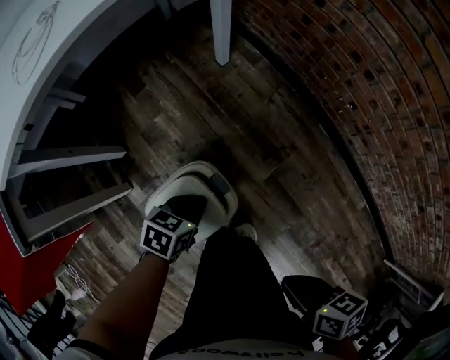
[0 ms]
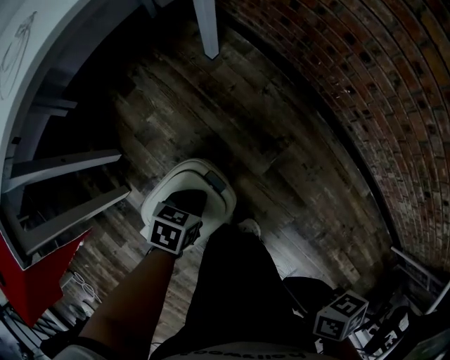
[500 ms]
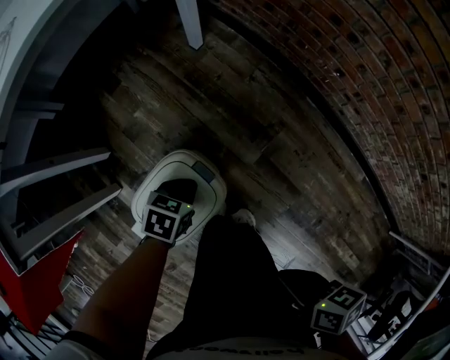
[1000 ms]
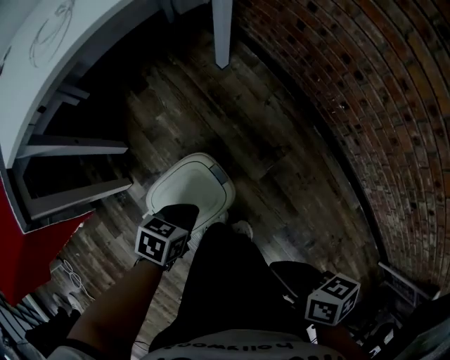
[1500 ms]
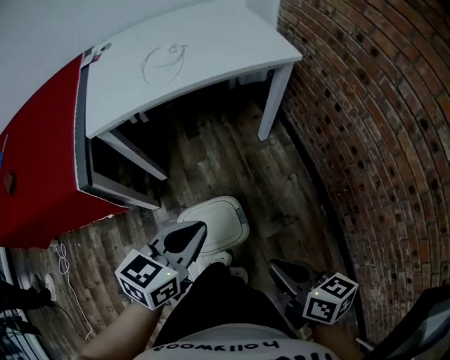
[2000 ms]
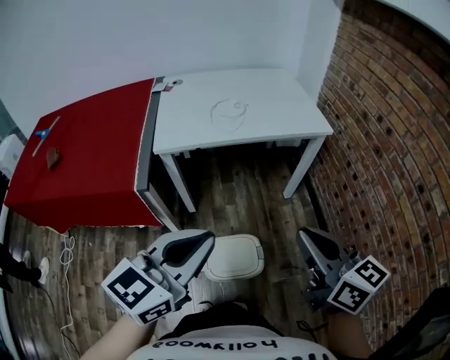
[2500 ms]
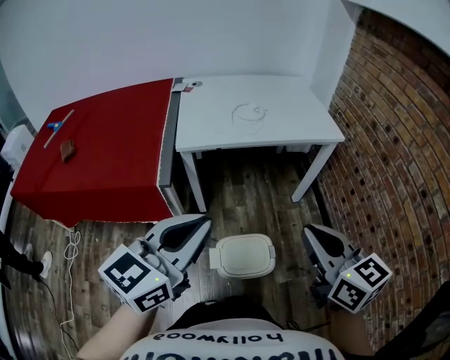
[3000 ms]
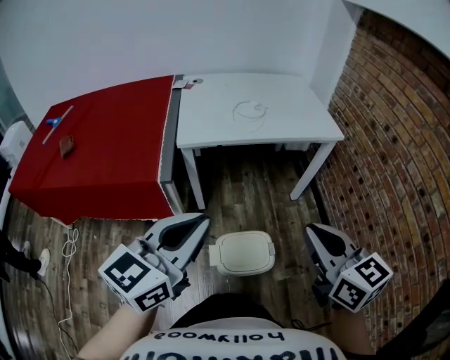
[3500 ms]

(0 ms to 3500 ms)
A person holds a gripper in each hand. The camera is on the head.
0 ms - 2000 ms: The right gripper travels upward by roughly 15 cm, and rotates about 30 degrees, while the left gripper heads upward, covering approximately 35 cm, and swivels roughly 40 degrees.
2000 ms - 3500 ms: Both grippers travel together upward and to the left, roughly 25 cm. The right gripper changes its angle by approximately 40 degrees. Meanwhile the left gripper swivels about 30 degrees.

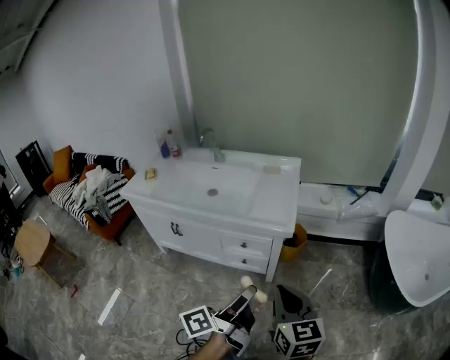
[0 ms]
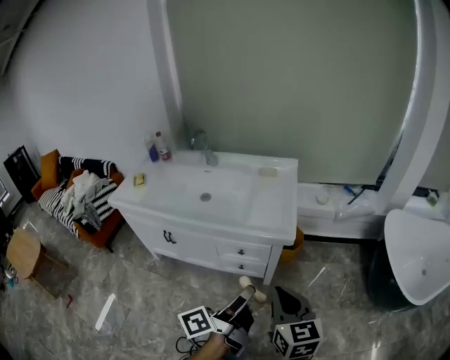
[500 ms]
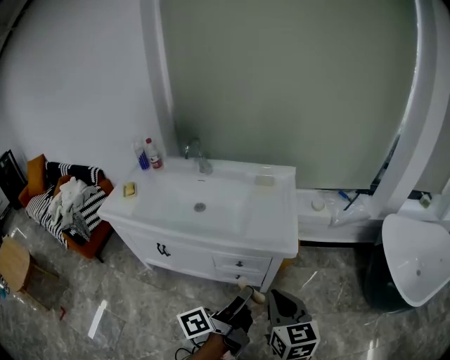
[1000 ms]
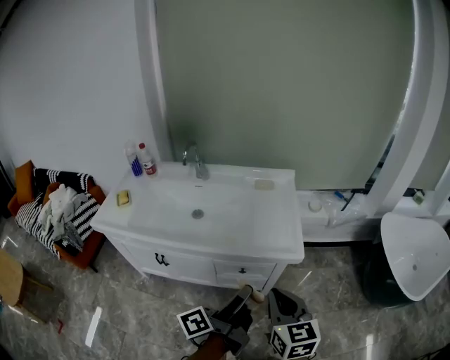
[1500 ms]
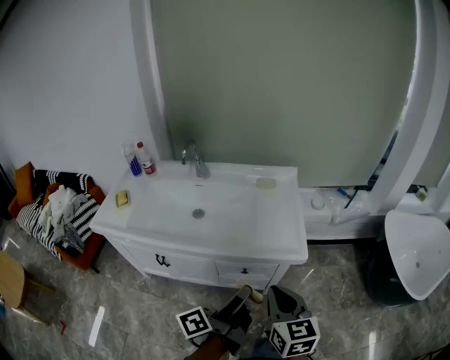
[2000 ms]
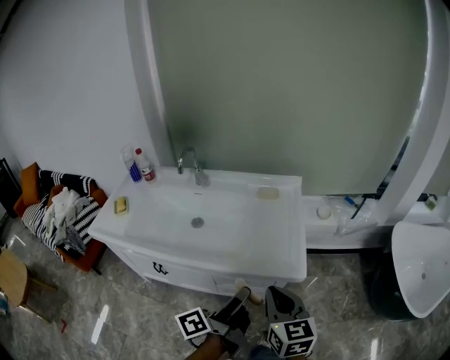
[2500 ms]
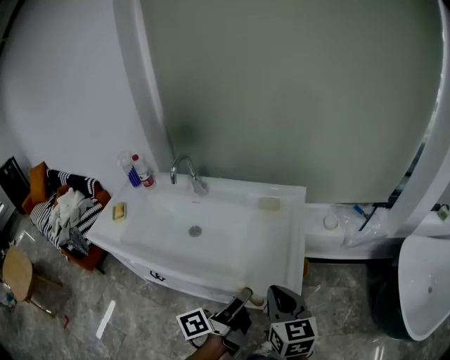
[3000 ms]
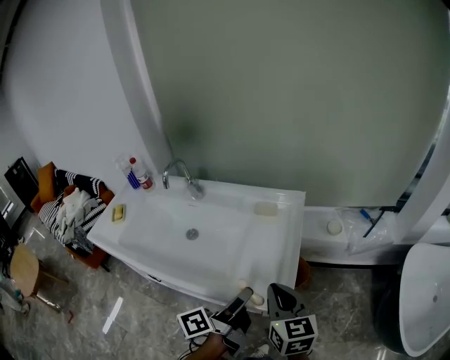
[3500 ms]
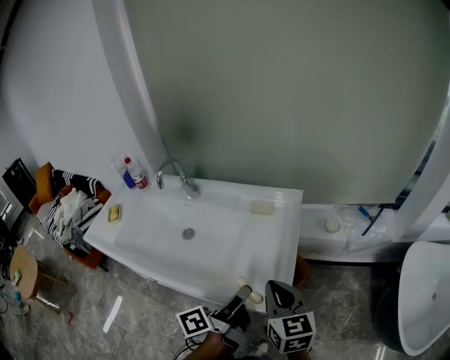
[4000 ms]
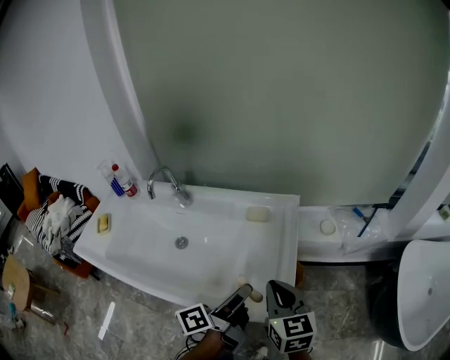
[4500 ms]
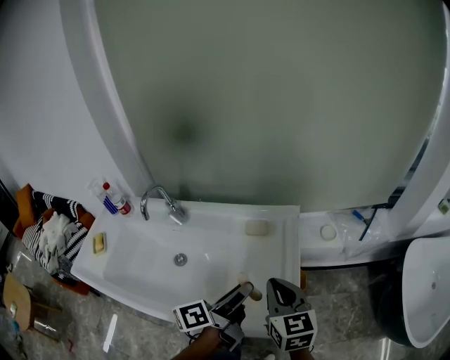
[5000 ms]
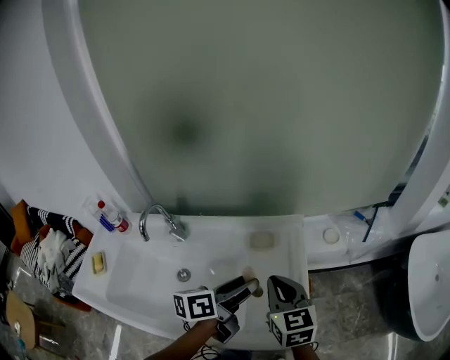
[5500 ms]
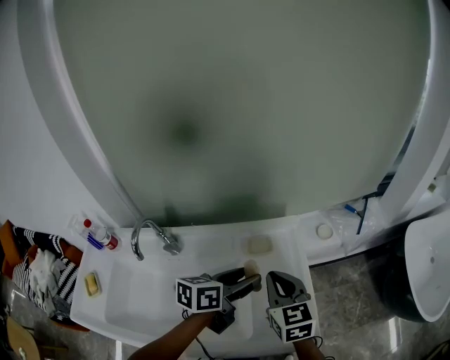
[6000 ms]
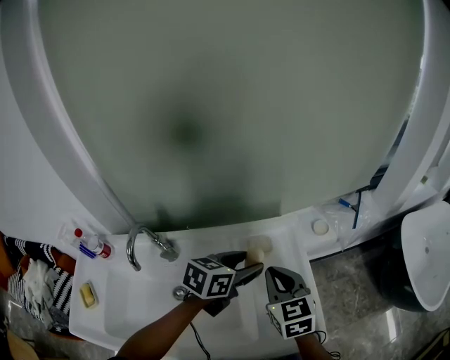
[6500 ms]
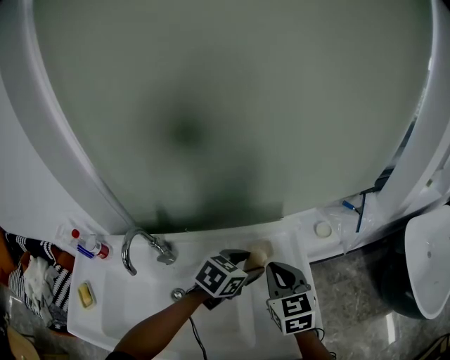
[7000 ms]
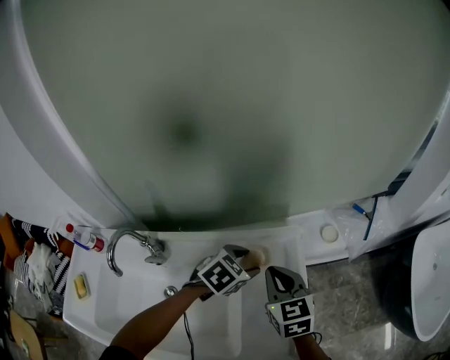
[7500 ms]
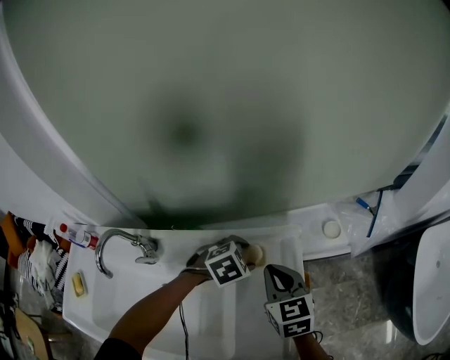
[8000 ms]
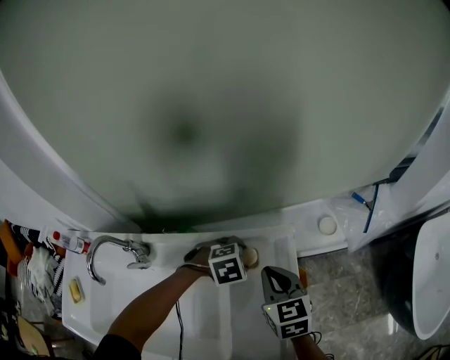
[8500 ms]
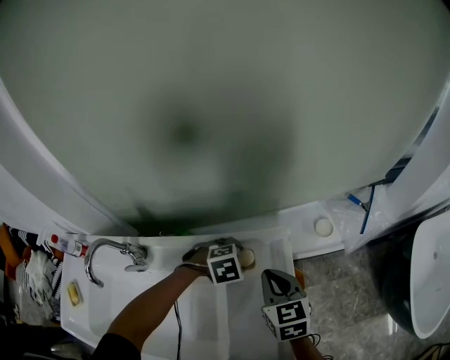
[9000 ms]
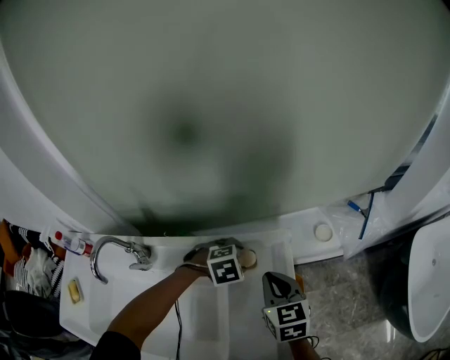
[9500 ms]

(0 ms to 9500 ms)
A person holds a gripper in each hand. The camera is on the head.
0 ms - 2000 ms: The two grippers go about 20 cm forward and to the left.
2000 ms - 4000 ms: Both grippers move forward and to the right, roughly 25 cm.
4000 ms - 5500 ms: The right gripper moves forward and to the left, approximately 15 cm, while the left gripper is displaced forward by about 15 cm, and turns by roughly 40 degrees.
5500 ms - 7500 ms: Both grippers travel together forward and downward, some 15 cm. The left gripper tips its fingers downward by about 40 degrees.
7500 ms - 9500 ms: The left gripper goes approximately 5 cm downward, and turns by some 30 degrees.

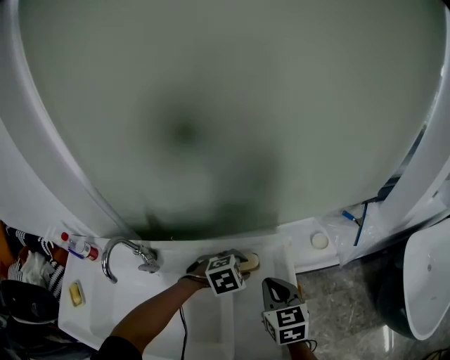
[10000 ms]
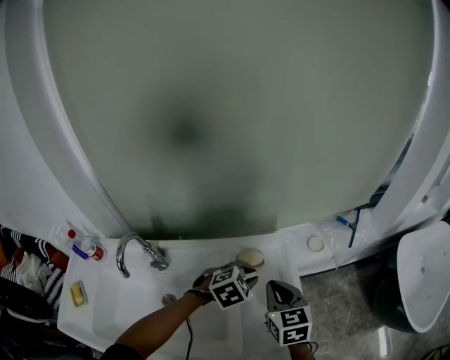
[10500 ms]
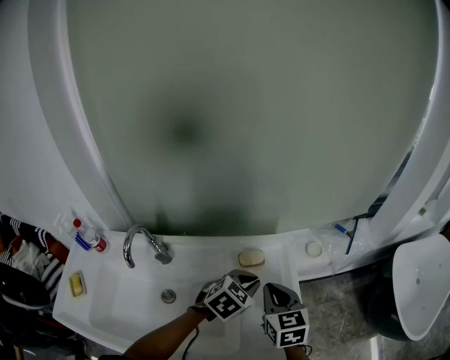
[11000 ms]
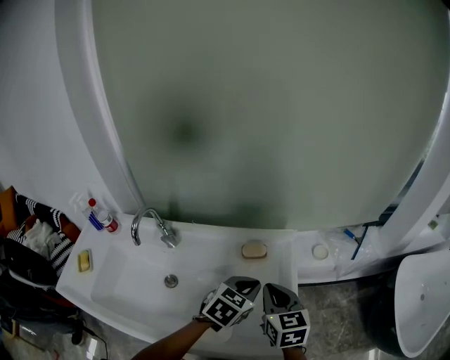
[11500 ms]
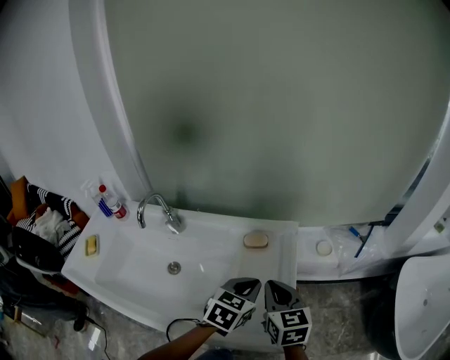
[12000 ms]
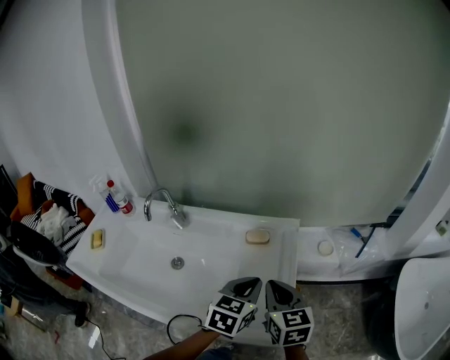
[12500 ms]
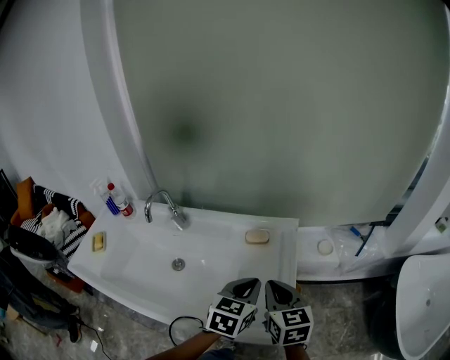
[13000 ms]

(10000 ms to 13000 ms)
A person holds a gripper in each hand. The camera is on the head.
10000 ms - 11500 ms: The left gripper shifts about 15 cm backward and upward, turns by approximately 50 degrees, and closes its fingers; the right gripper heads backward, covering approximately 10 cm.
11500 ms - 13000 ms: The grippers both shift backward by about 5 cm. The left gripper turns by about 20 degrees.

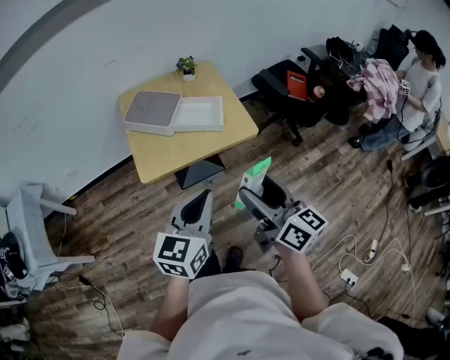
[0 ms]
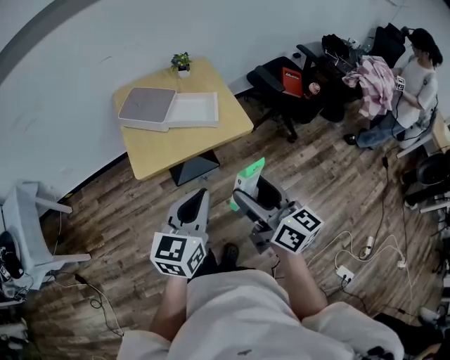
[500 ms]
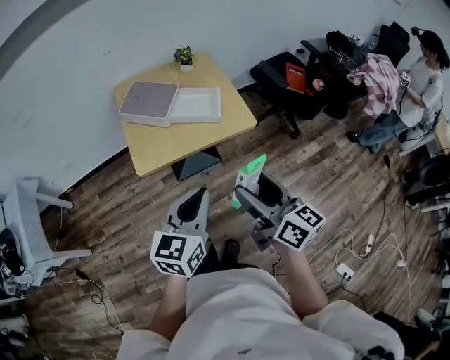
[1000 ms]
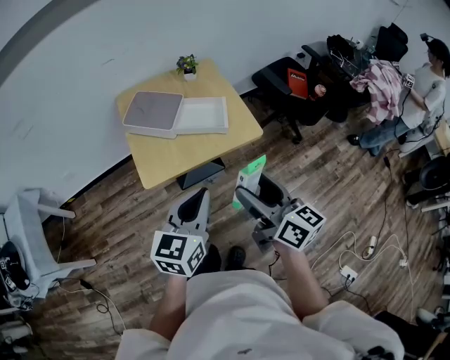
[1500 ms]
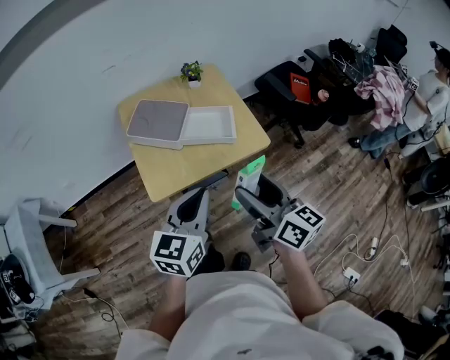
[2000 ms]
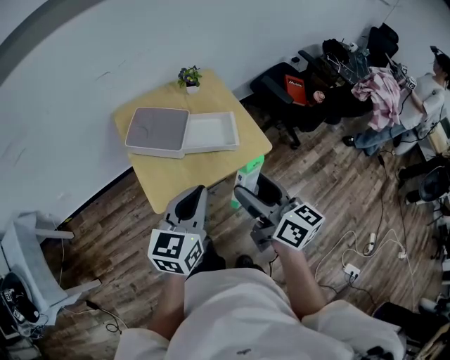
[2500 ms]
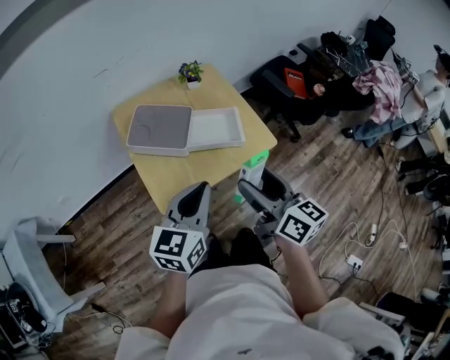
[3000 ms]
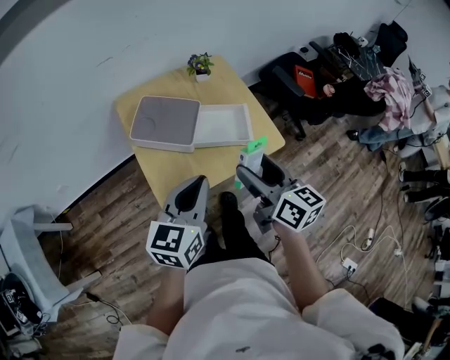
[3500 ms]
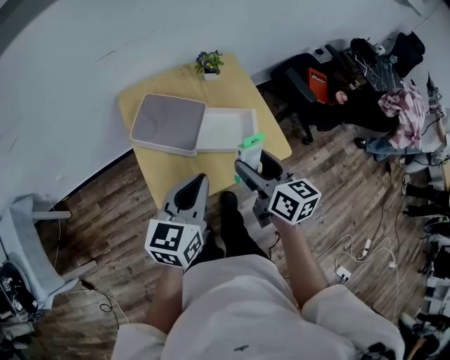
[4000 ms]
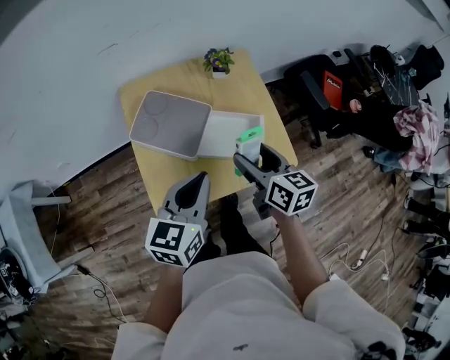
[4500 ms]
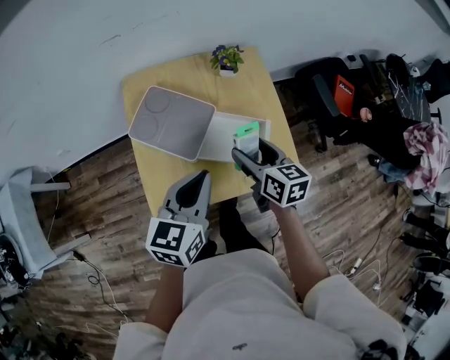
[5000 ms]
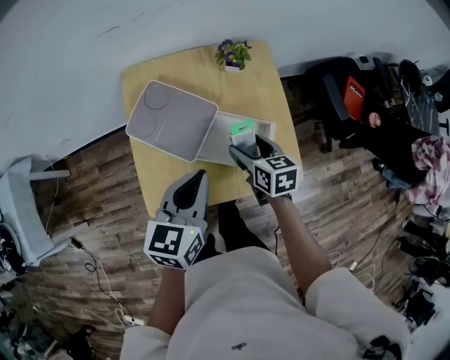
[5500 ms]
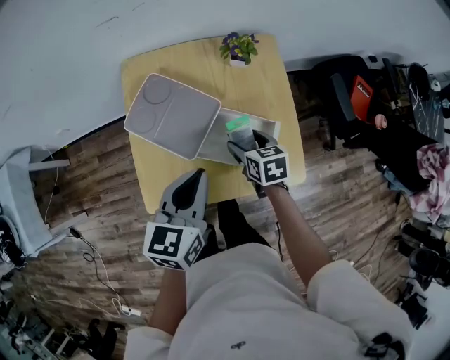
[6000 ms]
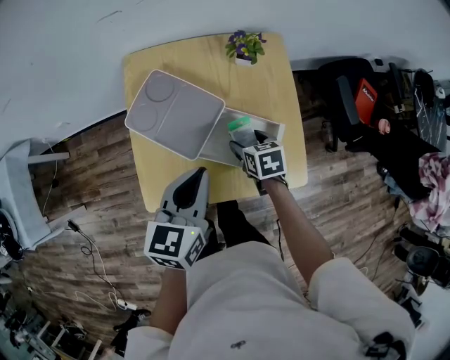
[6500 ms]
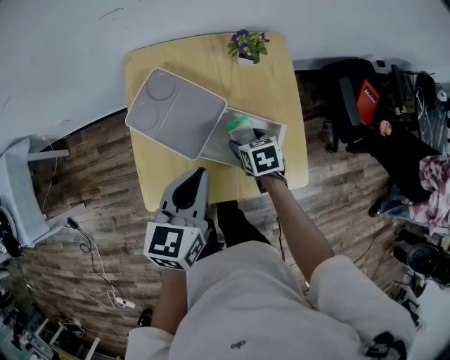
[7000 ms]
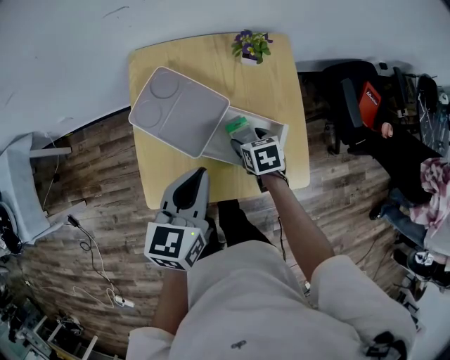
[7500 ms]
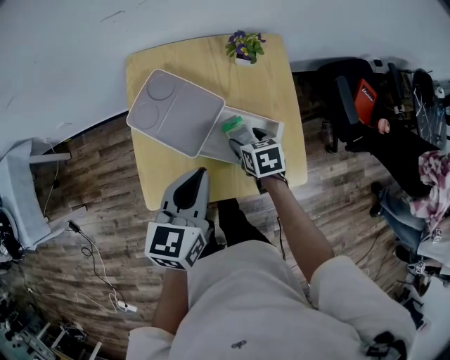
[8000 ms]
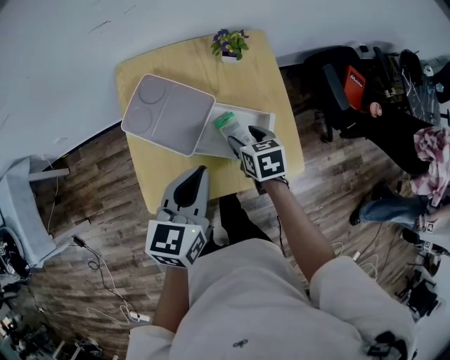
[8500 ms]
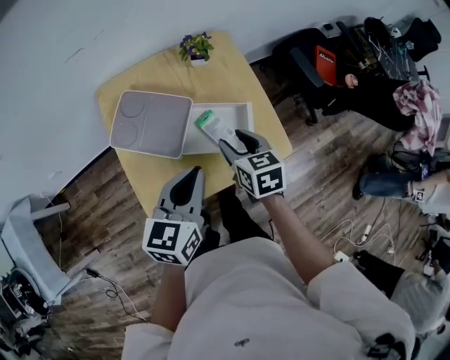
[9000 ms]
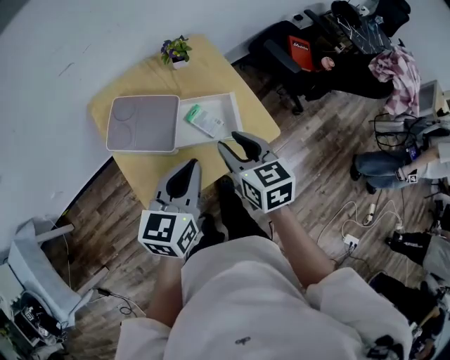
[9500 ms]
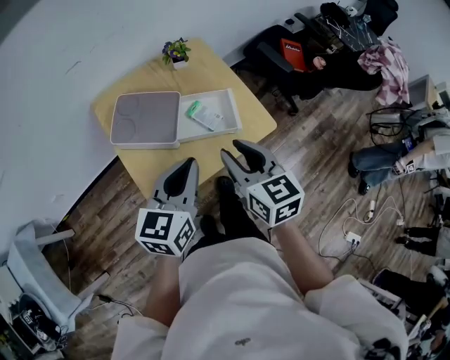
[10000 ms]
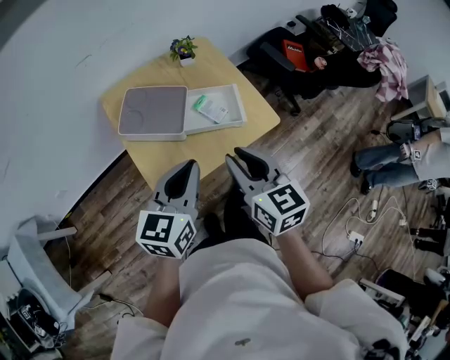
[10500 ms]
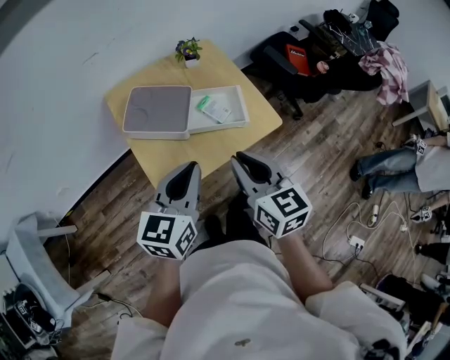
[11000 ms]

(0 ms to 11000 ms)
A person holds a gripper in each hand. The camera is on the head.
0 ms - 2000 ms: Both grippers travel together forward and to the left, roughly 10 cm.
2000 ms - 3500 ms: Both grippers move forward and to the left, about 10 cm.
3500 ms - 5500 ms: The right gripper moves forward and downward, about 30 cm, and changes its angle by roughly 30 degrees. Meanwhile the left gripper is displaced forward by about 15 cm.
5500 ms - 7500 ms: The right gripper is displaced downward by some 10 cm, and rotates about 20 degrees.
7500 ms - 9000 ms: The right gripper moves upward and backward, roughly 15 cm, turns by some 30 degrees, and closes its fingers.
9000 ms - 11000 ms: The left gripper goes some 15 cm backward and upward; the right gripper goes about 25 cm backward and upward, rotates about 20 degrees, and closes its fingers.
